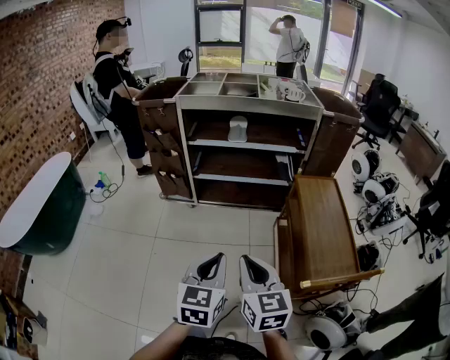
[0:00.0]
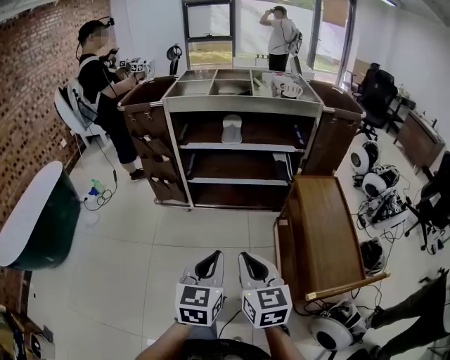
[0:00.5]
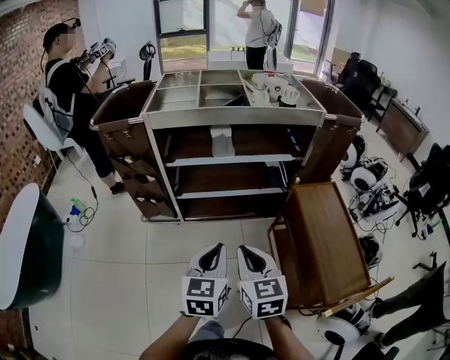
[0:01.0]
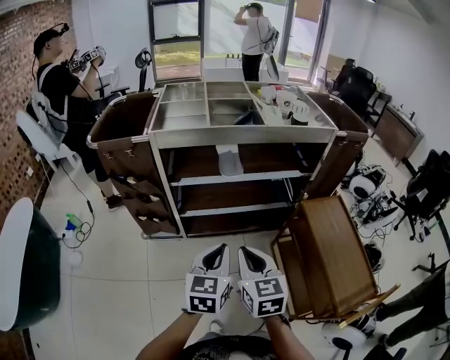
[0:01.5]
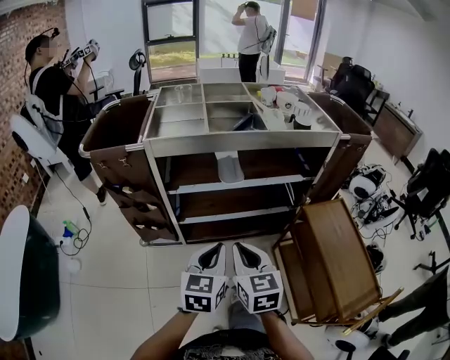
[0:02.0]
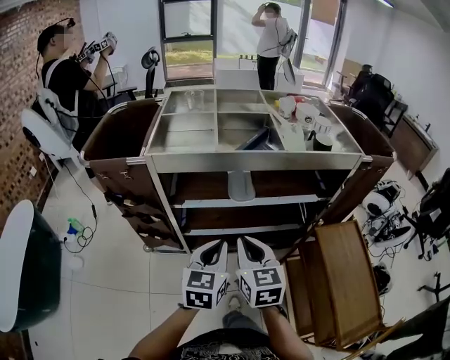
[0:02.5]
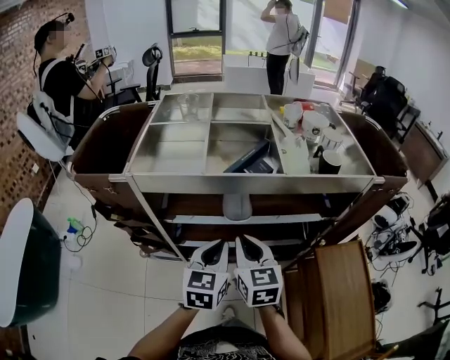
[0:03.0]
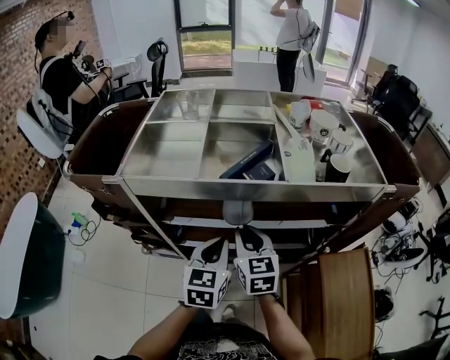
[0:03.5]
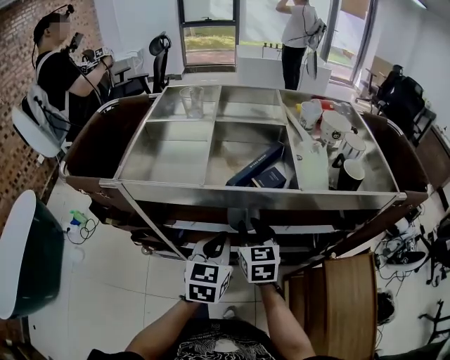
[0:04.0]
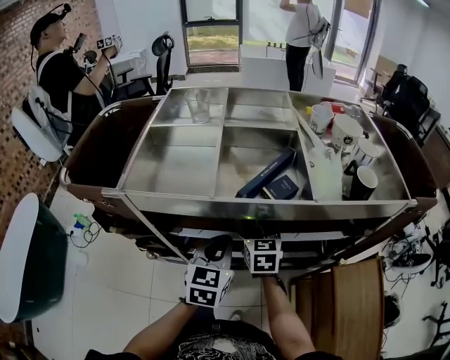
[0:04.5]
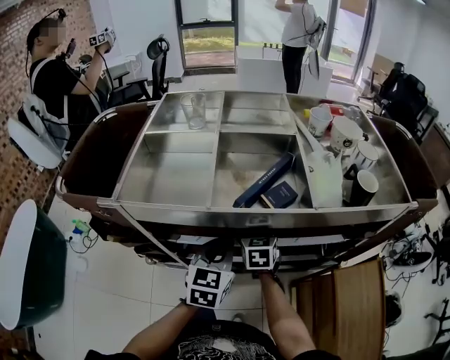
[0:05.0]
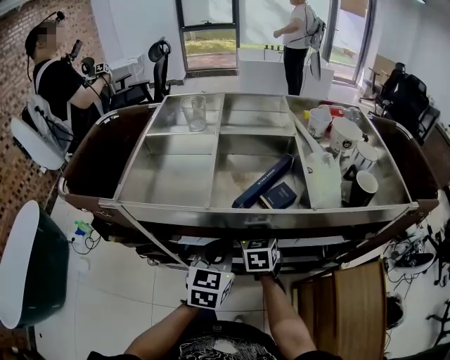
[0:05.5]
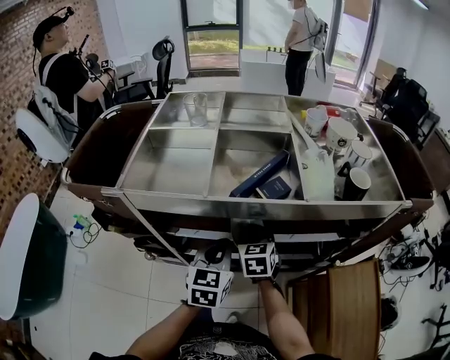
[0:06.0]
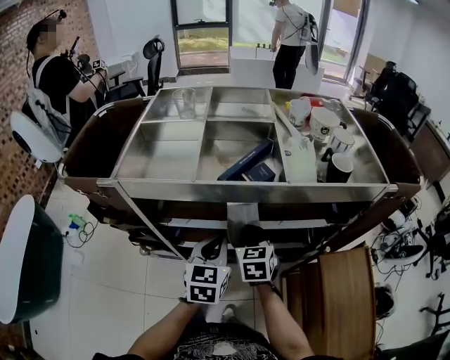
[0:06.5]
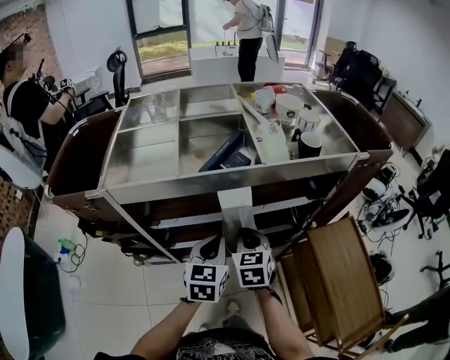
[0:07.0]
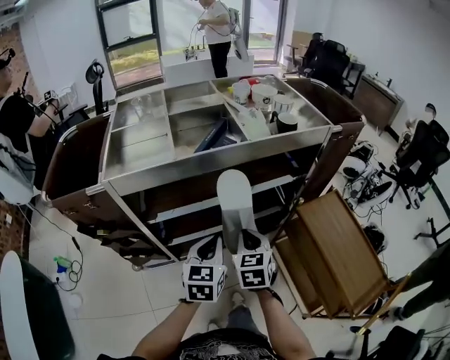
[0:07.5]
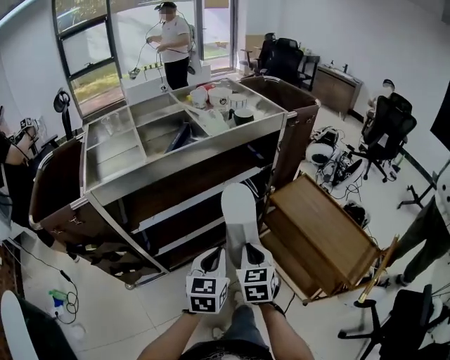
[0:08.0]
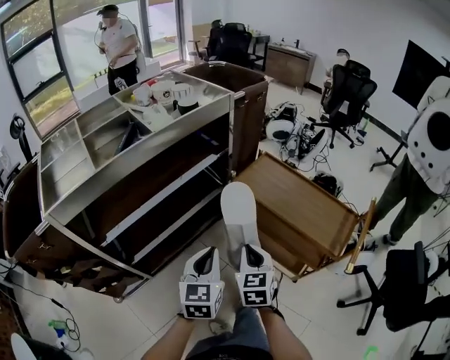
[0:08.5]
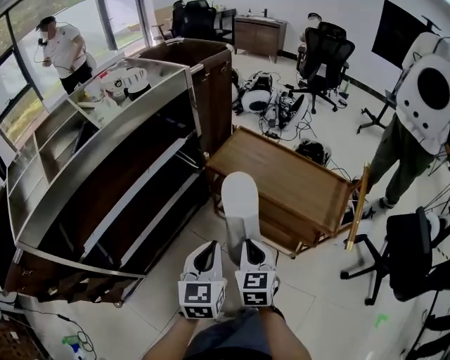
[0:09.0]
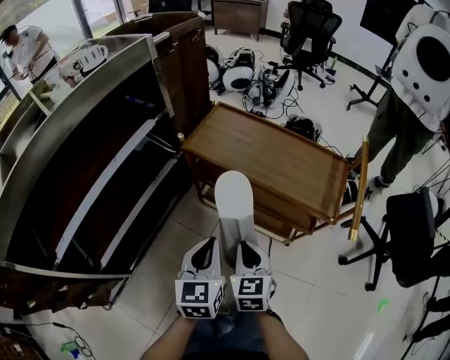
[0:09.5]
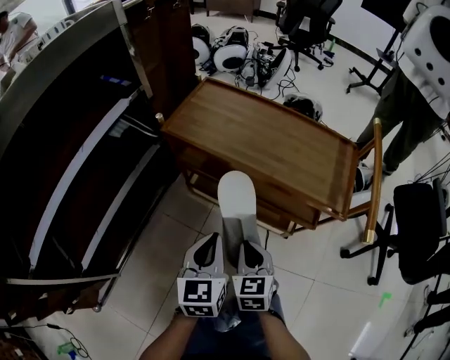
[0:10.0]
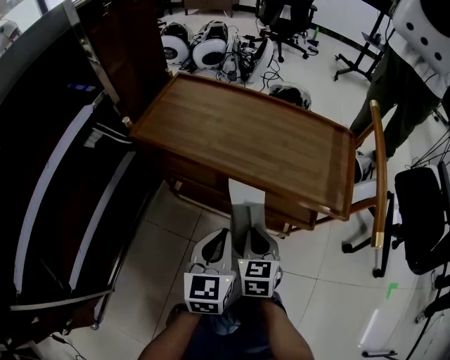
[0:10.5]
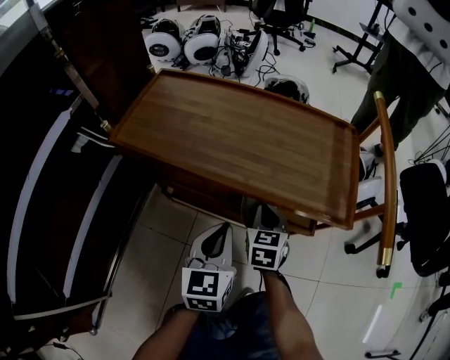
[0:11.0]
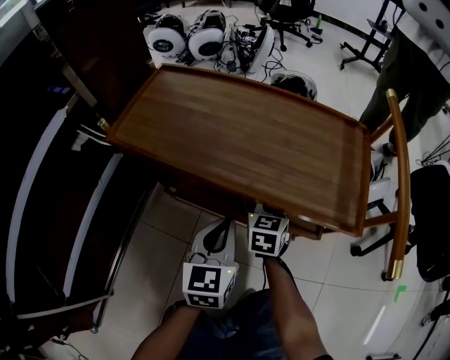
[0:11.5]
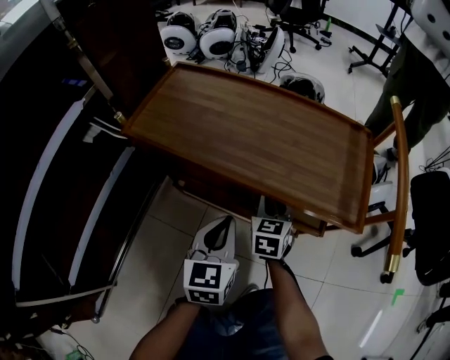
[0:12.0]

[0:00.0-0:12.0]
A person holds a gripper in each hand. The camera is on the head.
0:00.0 to 0:02.0: The two grippers travel together, forward, some 40 cm.
0:02.0 to 0:04.0: The two grippers go some 30 cm forward. The right gripper opens up.
0:06.0 to 0:08.0: The left gripper moves some 25 cm, and rotates approximately 30 degrees. The right gripper changes place by some 35 cm, and swivels about 30 degrees.
0:08.0 to 0:10.0: Both grippers move downward, approximately 25 cm. The left gripper changes its angle by approximately 30 degrees. Meanwhile the right gripper changes its angle by some 30 degrees.
0:10.0 to 0:12.0: The right gripper shifts about 25 cm forward and downward; the left gripper heads forward, downward and to the right, covering roughly 15 cm.

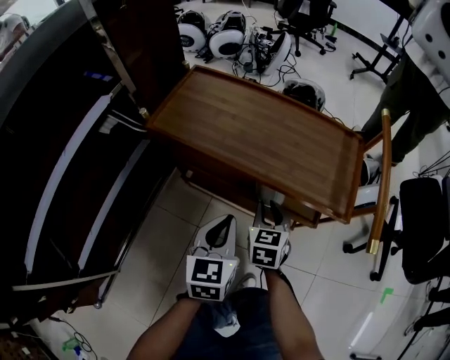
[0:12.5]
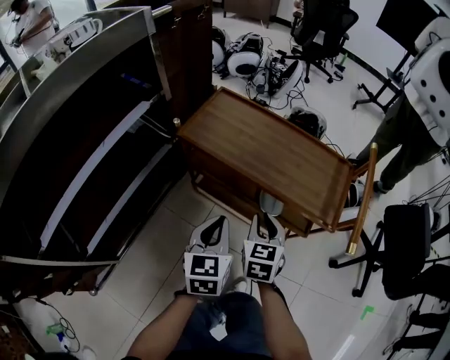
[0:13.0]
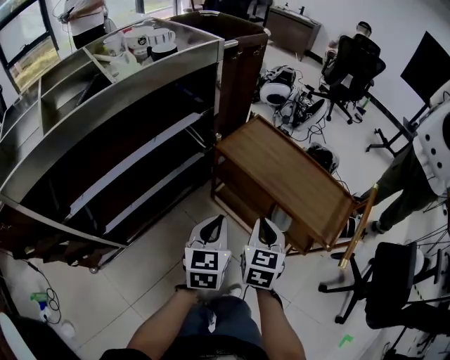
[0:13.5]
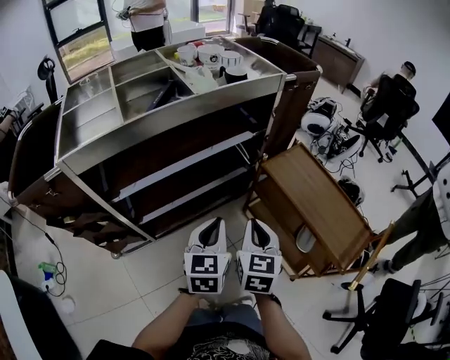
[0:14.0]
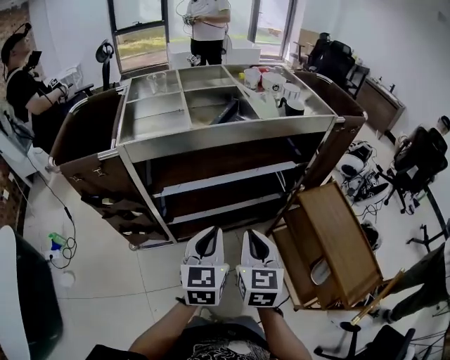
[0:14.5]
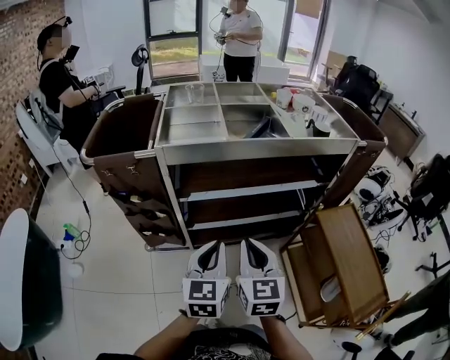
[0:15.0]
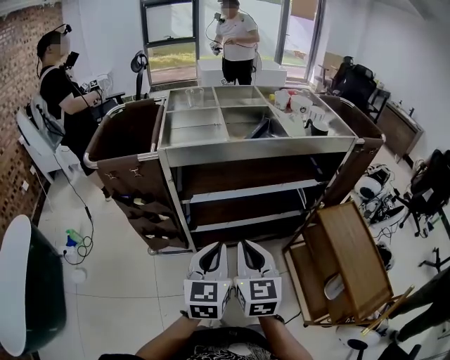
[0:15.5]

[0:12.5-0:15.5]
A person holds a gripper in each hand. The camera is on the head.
0:12.5 to 0:14.0: The right gripper moves upward, some 35 cm, and swivels roughly 40 degrees. Meanwhile the left gripper shifts by approximately 40 cm, and turns by roughly 40 degrees.
0:14.0 to 0:15.5: The left gripper changes place by about 20 cm, and turns by approximately 20 degrees. The right gripper shifts by about 25 cm, and swivels roughly 30 degrees.

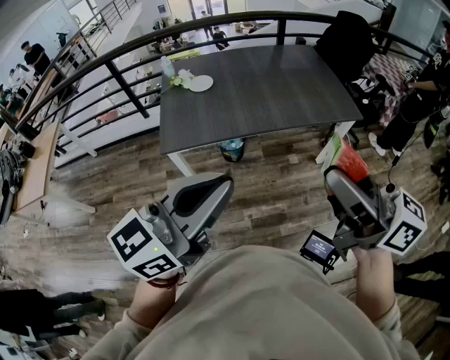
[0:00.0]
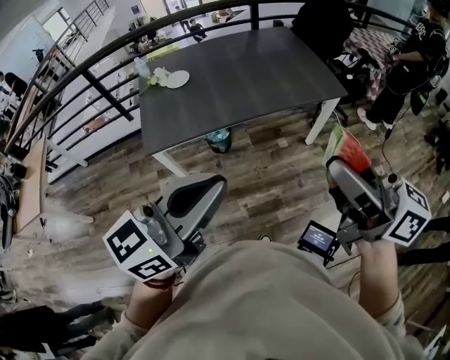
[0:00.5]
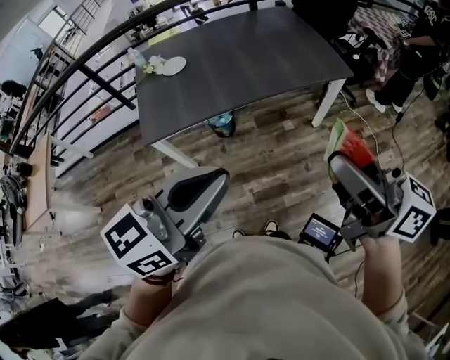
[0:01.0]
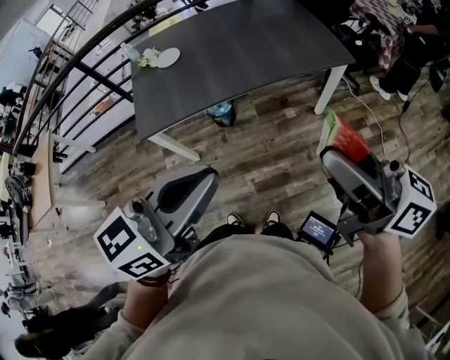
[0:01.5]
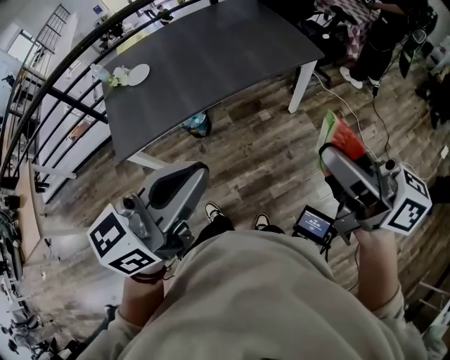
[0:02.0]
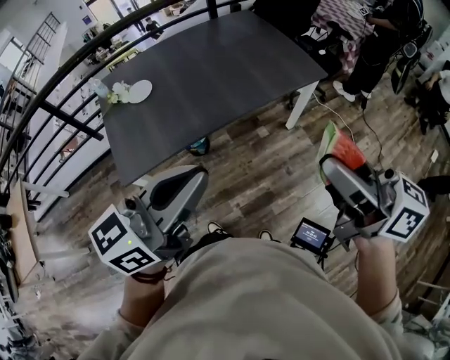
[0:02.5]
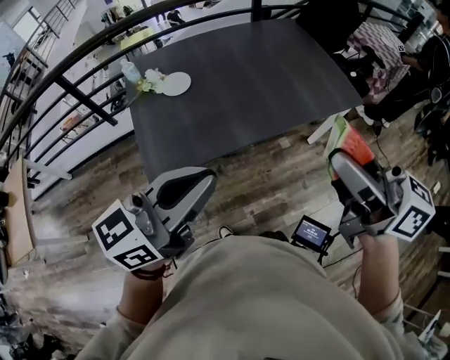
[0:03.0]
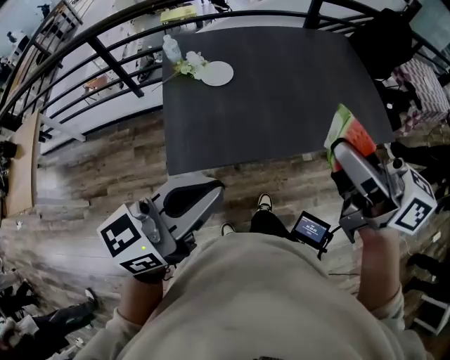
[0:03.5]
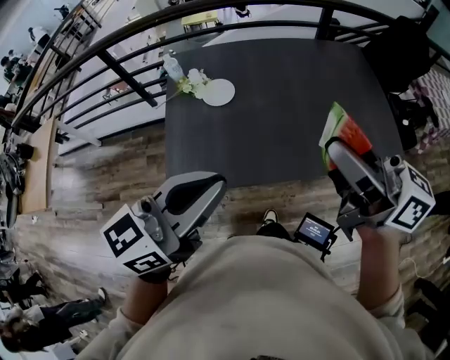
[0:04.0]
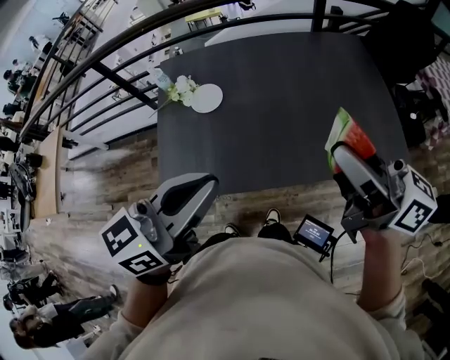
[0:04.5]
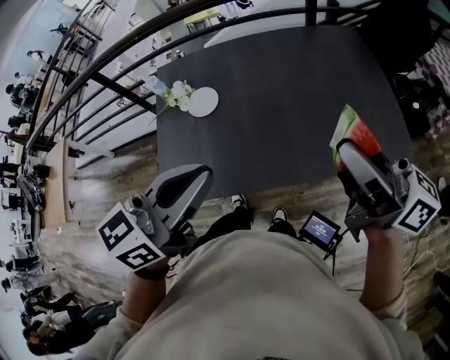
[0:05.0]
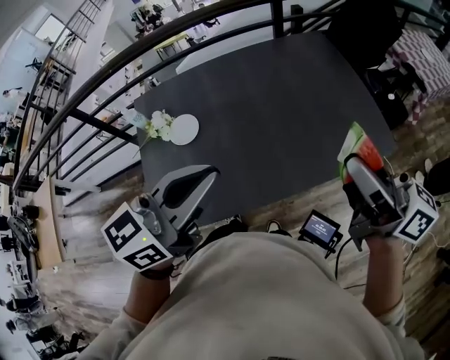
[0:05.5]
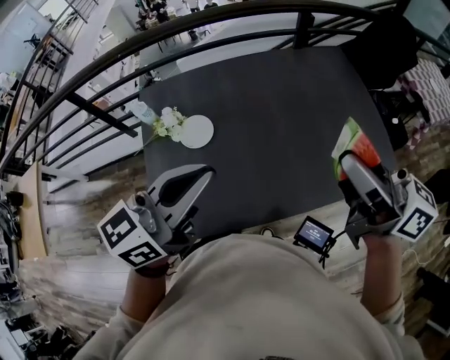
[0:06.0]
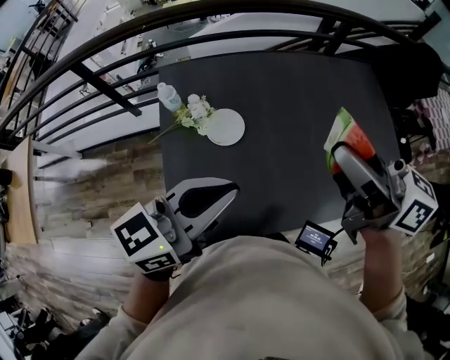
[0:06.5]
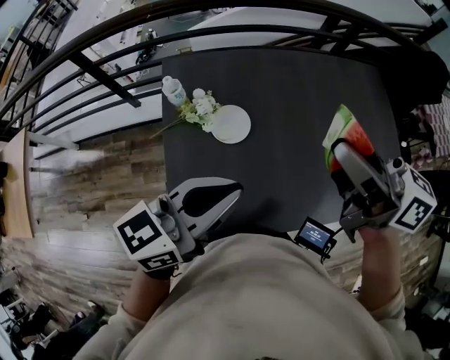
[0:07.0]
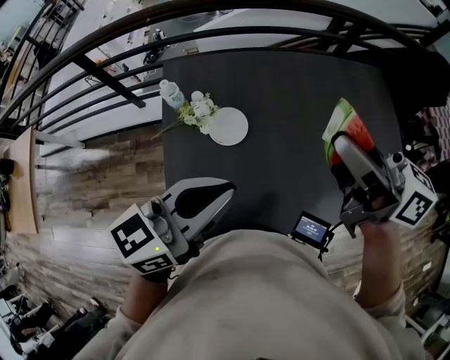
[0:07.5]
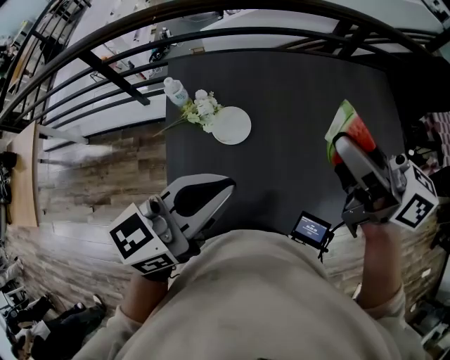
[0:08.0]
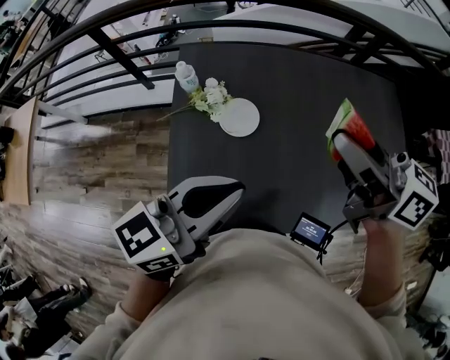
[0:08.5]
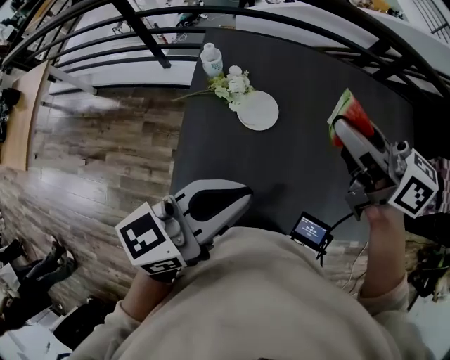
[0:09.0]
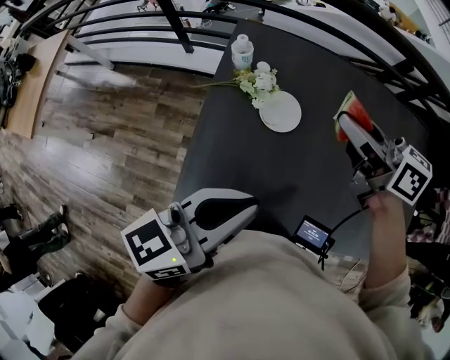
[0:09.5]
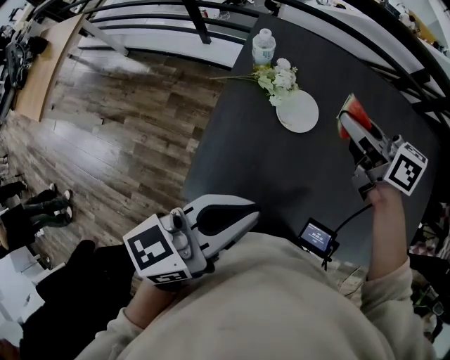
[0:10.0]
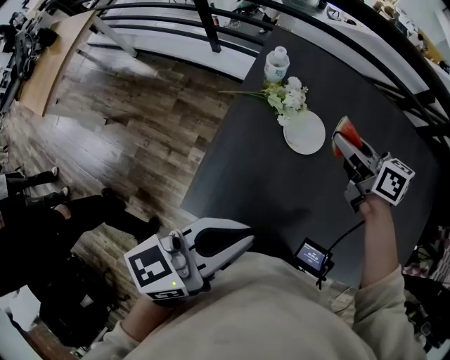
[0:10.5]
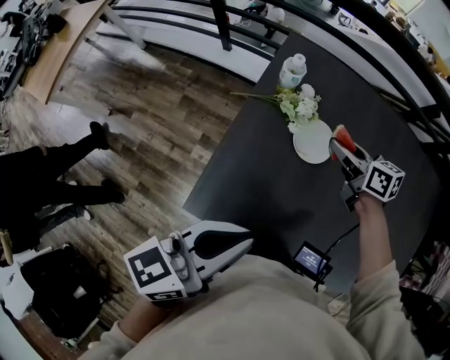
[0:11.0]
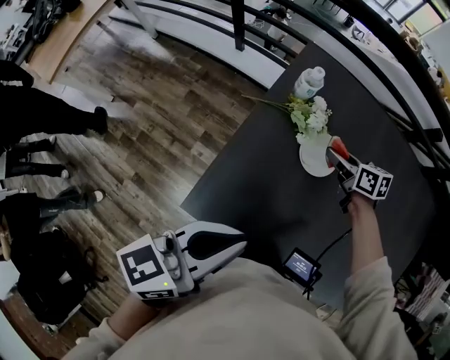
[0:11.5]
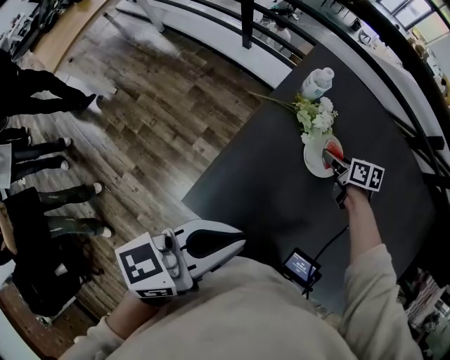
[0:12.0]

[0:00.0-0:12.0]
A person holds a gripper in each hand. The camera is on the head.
0:00.0 to 0:02.0: The left gripper shifts approximately 10 cm to the right, forward and downward, while the right gripper travels to the right and downward by approximately 15 cm.
0:02.0 to 0:04.0: The grippers both shift forward and to the left by about 40 cm. The right gripper swivels about 20 degrees.
0:04.0 to 0:06.0: The grippers both shift forward by roughly 15 cm. The right gripper moves some 15 cm to the right and comes back.
0:06.0 to 0:08.0: The left gripper is displaced to the left and forward by about 10 cm, while the right gripper heads to the left and forward, covering about 20 cm.
0:08.0 to 0:10.0: The right gripper is displaced downward, forward and to the left by approximately 25 cm, and changes its angle by some 30 degrees. The left gripper shifts some 10 cm to the left and downward, and swivels about 20 degrees.
0:10.0 to 0:12.0: The left gripper heads to the left, covering approximately 5 cm. Meanwhile the right gripper heads downward, covering approximately 25 cm, and turns by about 30 degrees.
